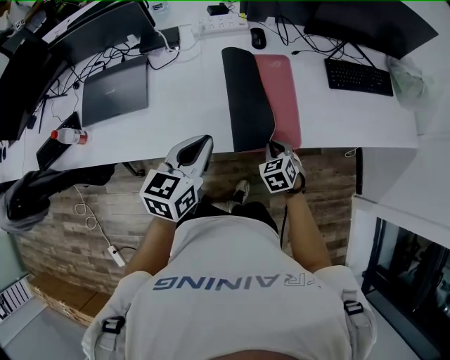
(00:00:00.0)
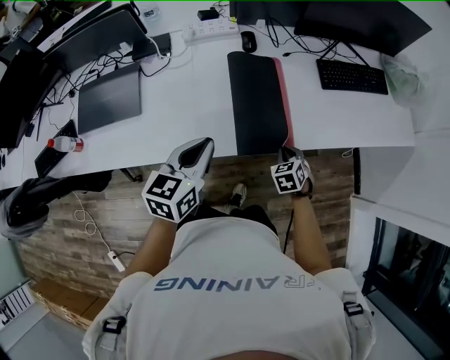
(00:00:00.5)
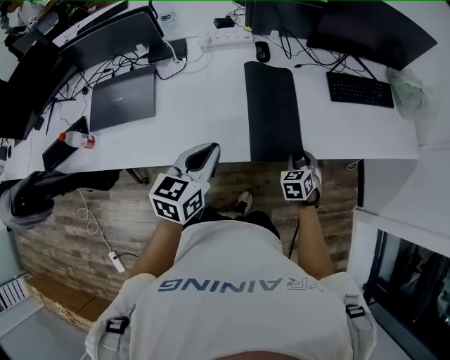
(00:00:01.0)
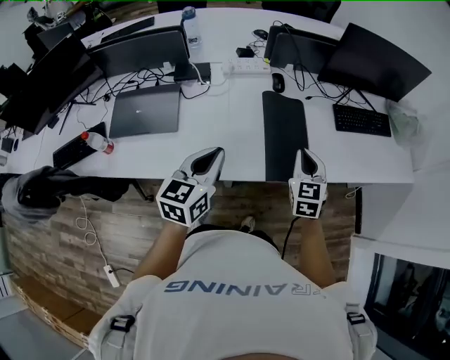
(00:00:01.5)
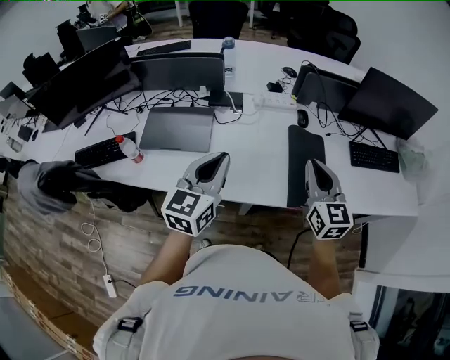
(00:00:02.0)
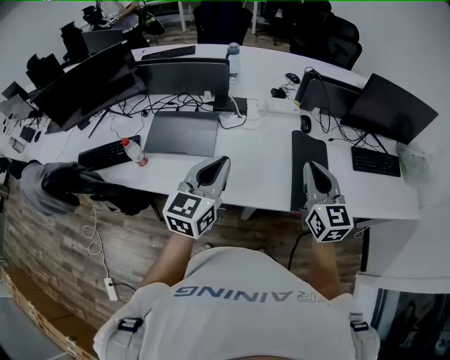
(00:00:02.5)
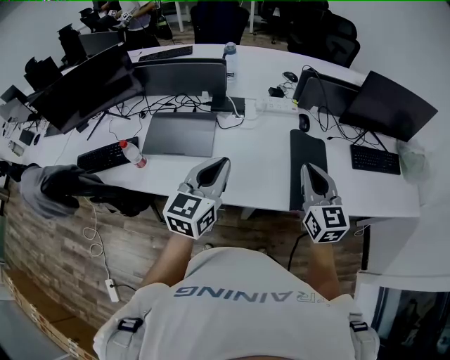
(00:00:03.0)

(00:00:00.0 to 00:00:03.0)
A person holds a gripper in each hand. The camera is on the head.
00:00:00.0 - 00:00:01.5: The left gripper goes about 10 cm to the left and upward; the right gripper shifts about 20 cm upward, swivels about 30 degrees, and opens, then closes again.
00:00:01.5 - 00:00:03.0: Both grippers move to the left and upward, approximately 15 cm. The right gripper turns by roughly 30 degrees.

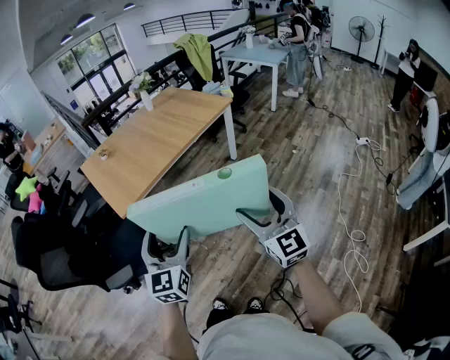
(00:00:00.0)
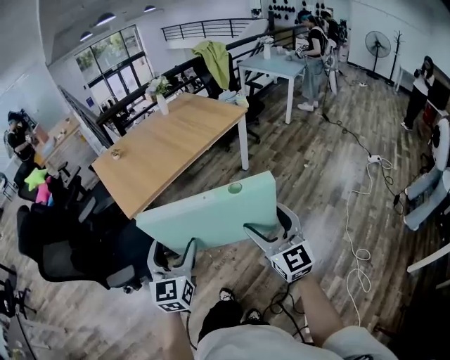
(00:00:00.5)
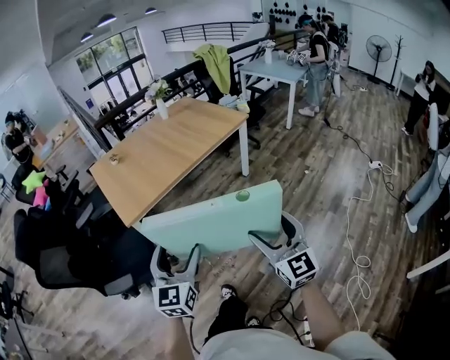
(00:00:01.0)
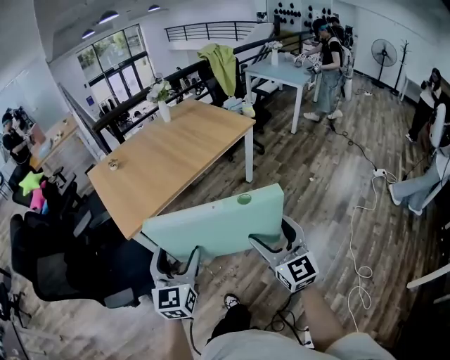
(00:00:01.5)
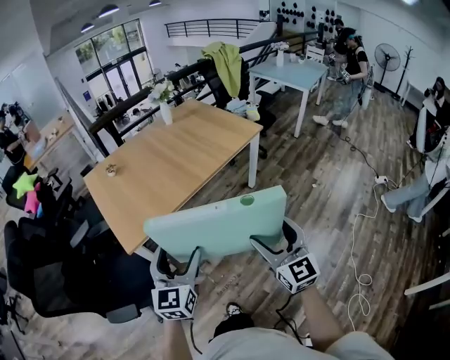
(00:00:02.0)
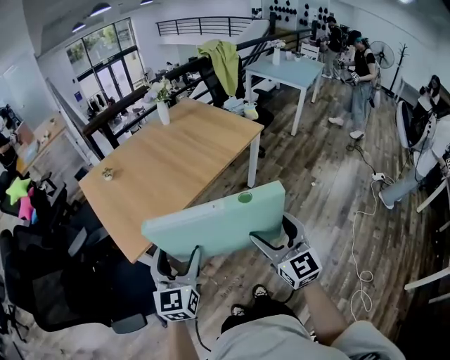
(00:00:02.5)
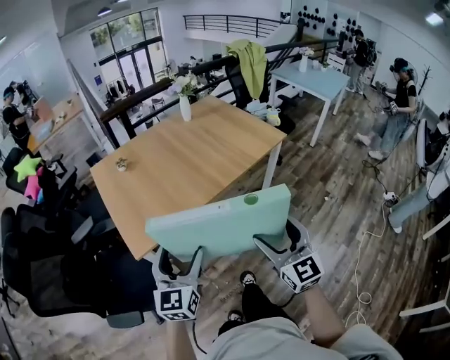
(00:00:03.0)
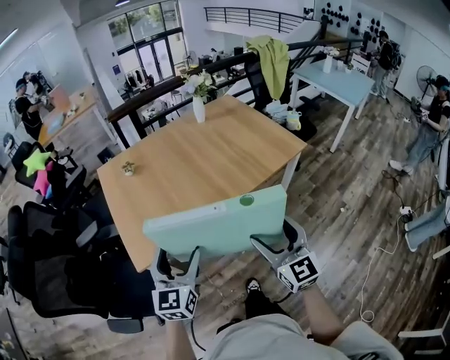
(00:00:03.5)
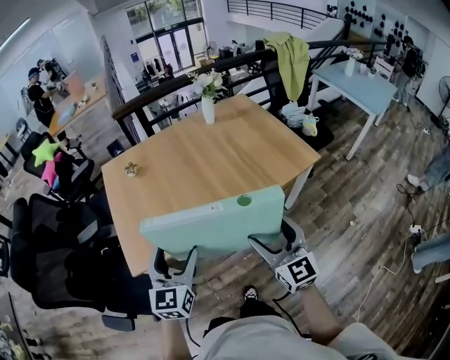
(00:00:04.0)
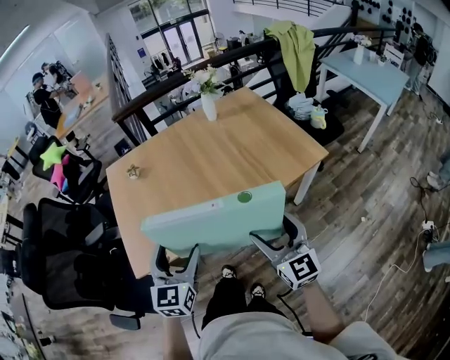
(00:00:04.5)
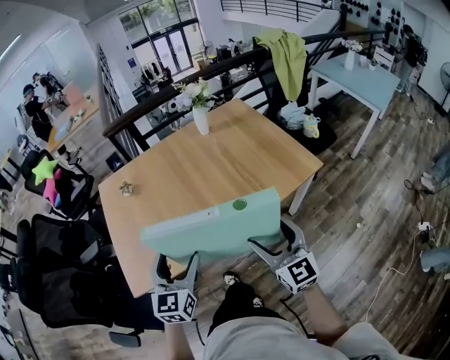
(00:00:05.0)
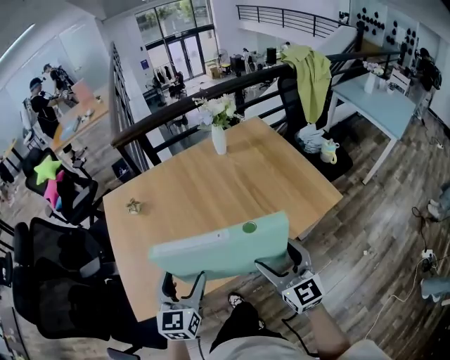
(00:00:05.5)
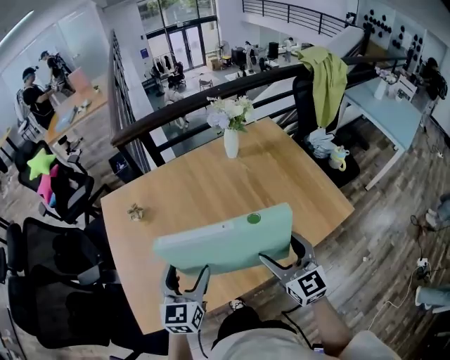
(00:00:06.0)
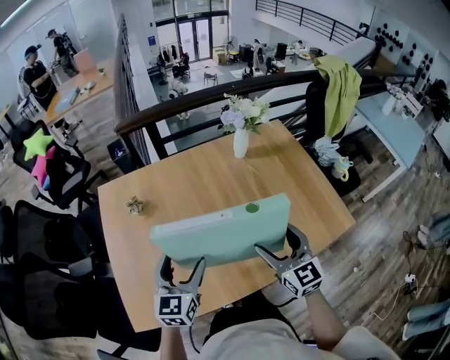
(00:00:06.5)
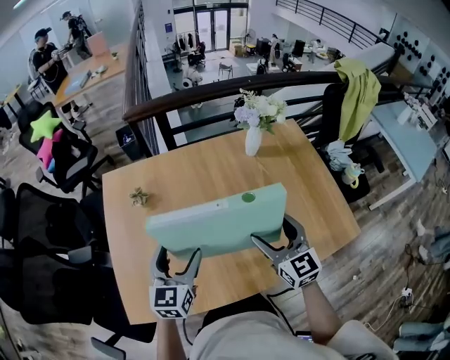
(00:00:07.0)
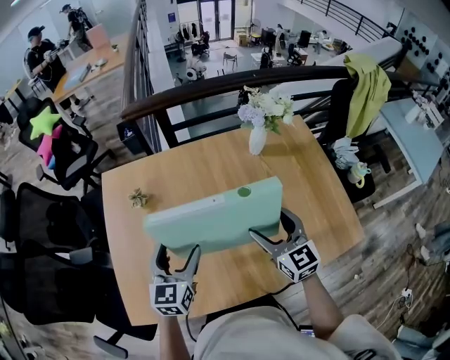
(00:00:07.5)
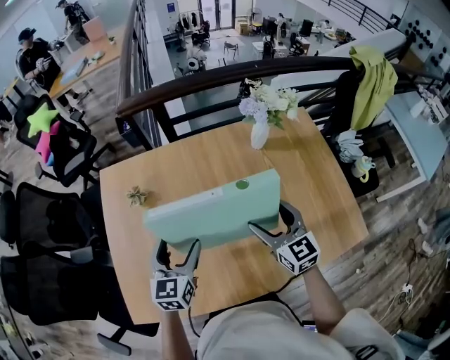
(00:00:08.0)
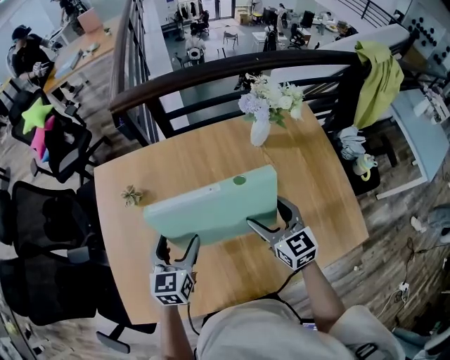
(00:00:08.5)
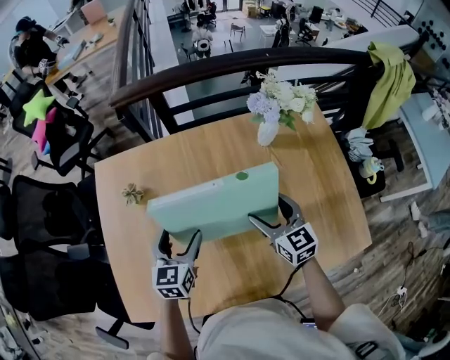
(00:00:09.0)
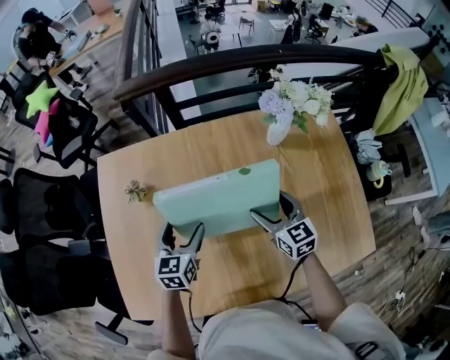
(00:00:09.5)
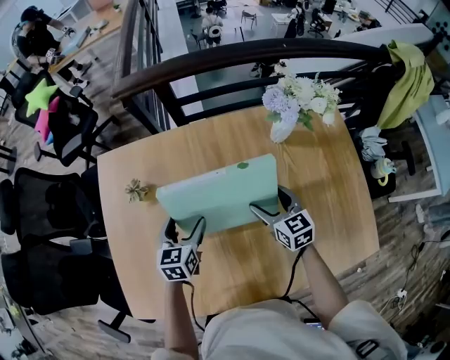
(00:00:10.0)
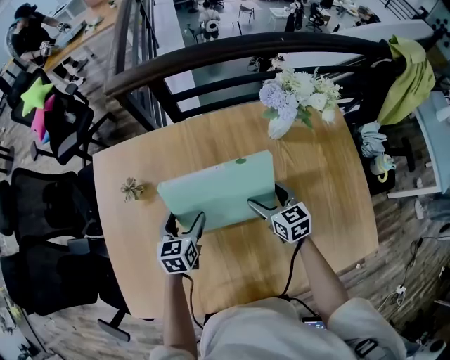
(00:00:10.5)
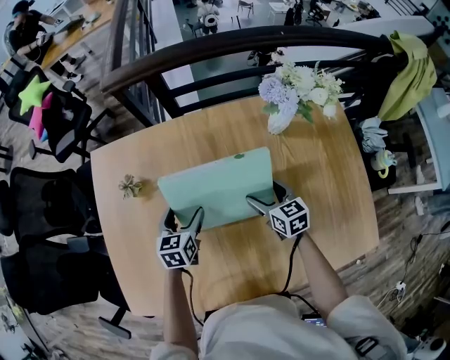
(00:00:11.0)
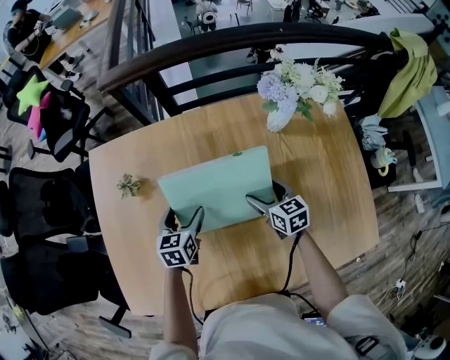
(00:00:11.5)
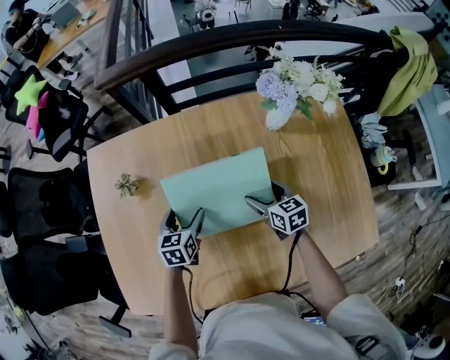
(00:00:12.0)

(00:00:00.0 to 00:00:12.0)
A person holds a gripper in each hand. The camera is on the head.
00:00:00.0 - 00:00:02.0: Both grippers move forward, about 20 cm.
00:00:02.0 - 00:00:04.0: The two grippers go some 30 cm forward.
00:00:04.0 - 00:00:06.0: The two grippers go about 30 cm forward.
00:00:06.0 - 00:00:08.0: The two grippers go approximately 20 cm forward.
00:00:08.0 - 00:00:10.0: Both grippers move downward and forward, about 15 cm.
00:00:10.0 - 00:00:12.0: Both grippers travel together downward, approximately 10 cm.

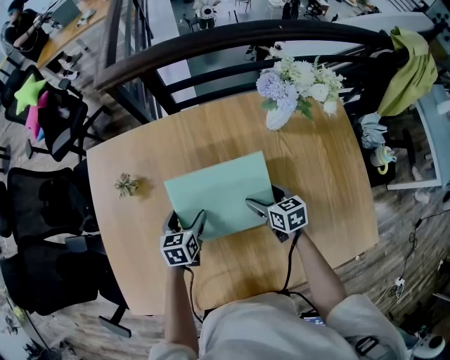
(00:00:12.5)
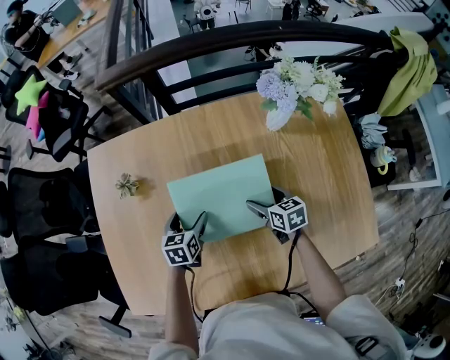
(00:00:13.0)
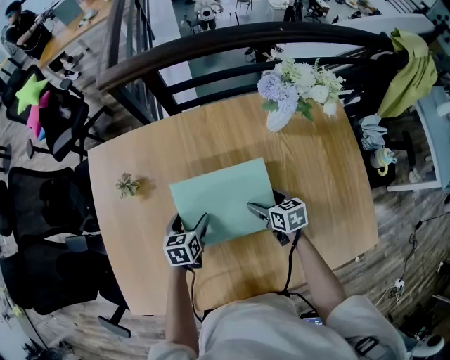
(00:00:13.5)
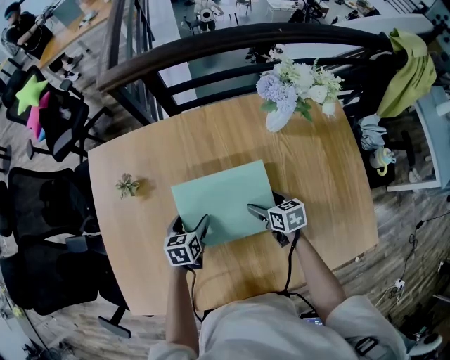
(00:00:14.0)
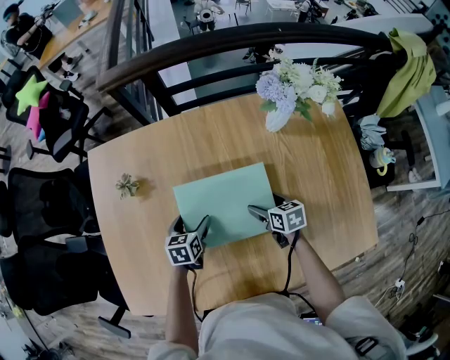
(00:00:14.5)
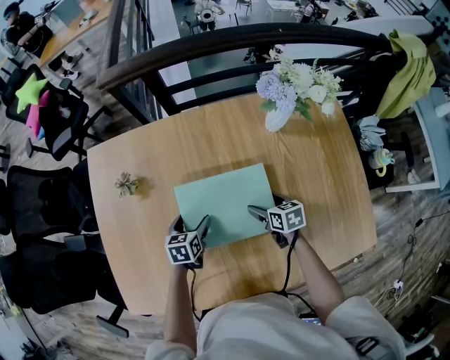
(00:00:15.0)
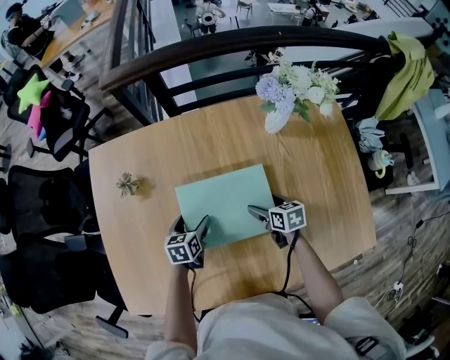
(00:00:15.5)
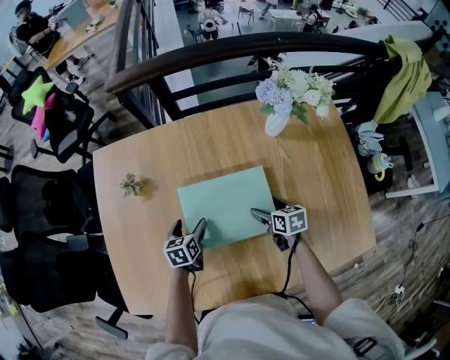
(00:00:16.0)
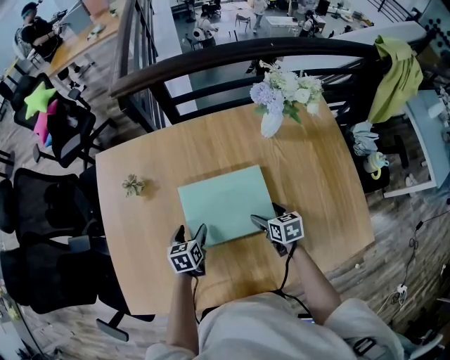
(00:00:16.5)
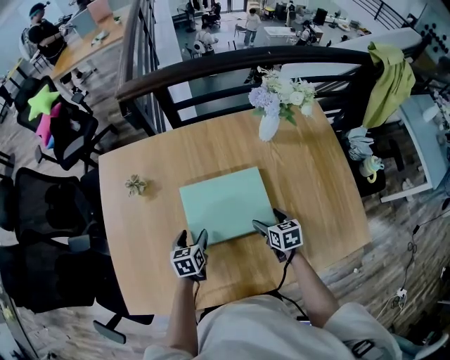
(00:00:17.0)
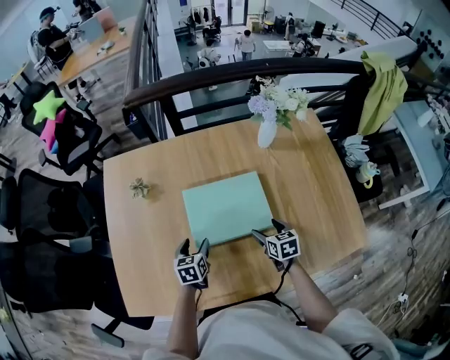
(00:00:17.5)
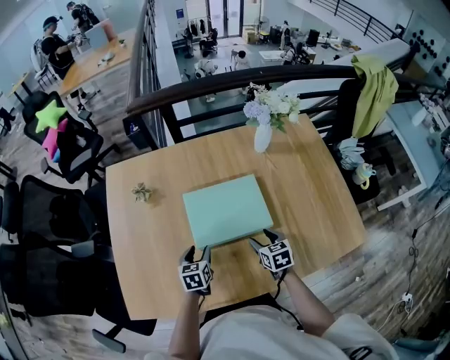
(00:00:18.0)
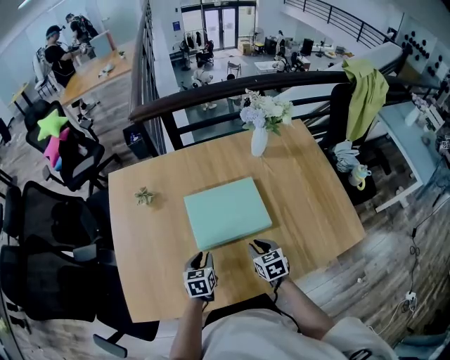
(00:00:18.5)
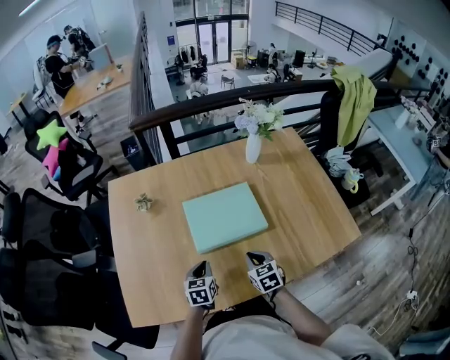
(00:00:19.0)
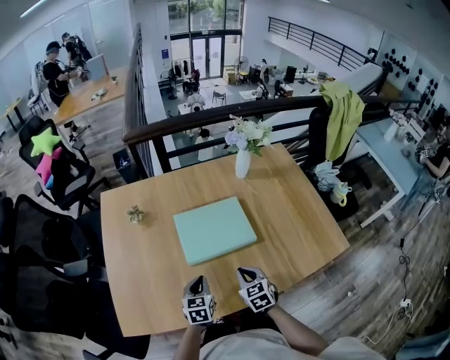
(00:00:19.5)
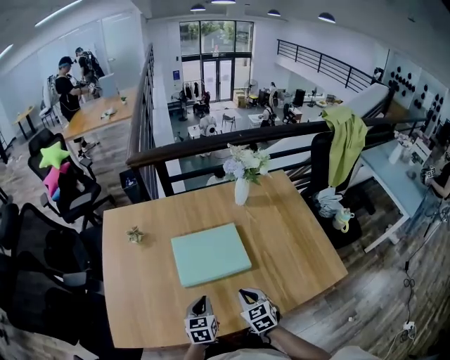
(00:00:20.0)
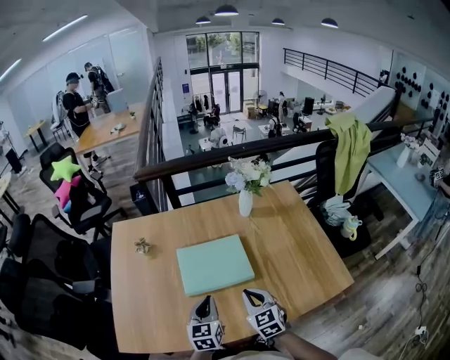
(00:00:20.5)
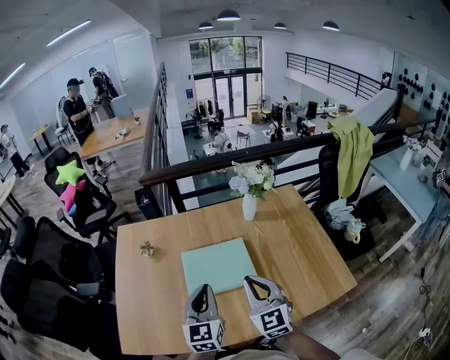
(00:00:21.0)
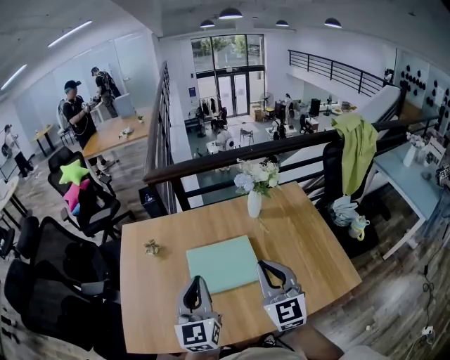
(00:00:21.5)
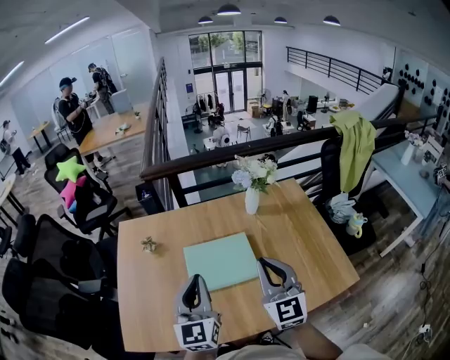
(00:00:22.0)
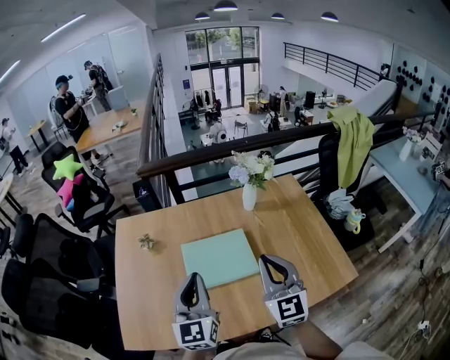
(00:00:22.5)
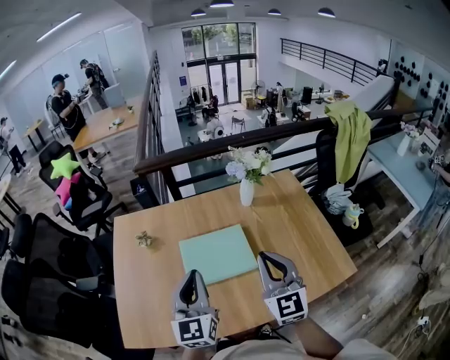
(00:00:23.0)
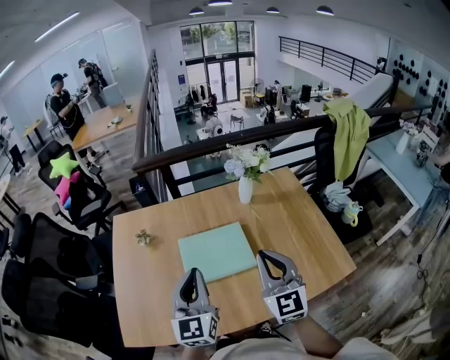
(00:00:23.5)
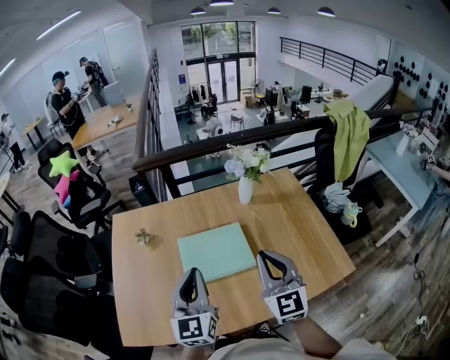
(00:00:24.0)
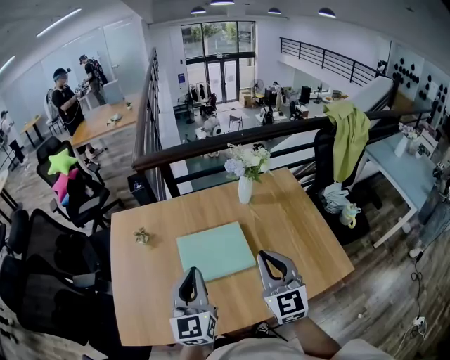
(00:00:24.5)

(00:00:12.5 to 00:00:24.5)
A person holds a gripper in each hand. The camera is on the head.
00:00:12.5 - 00:00:14.5: The grippers move only a little.
00:00:14.5 - 00:00:16.5: The right gripper ends up roughly 5 cm from where it was.
00:00:16.5 - 00:00:18.5: The right gripper heads backward and to the left, covering approximately 15 cm, and closes its fingers. The left gripper heads backward, covering about 10 cm, and closes.
00:00:18.5 - 00:00:20.5: The left gripper heads upward and to the right, covering some 15 cm, and turns by approximately 20 degrees, while the right gripper travels upward by about 15 cm, and turns by some 20 degrees.
00:00:20.5 - 00:00:22.5: The two grippers go about 20 cm upward. The left gripper rotates about 20 degrees. Meanwhile the right gripper swivels approximately 30 degrees.
00:00:22.5 - 00:00:24.5: Both grippers stay put.
